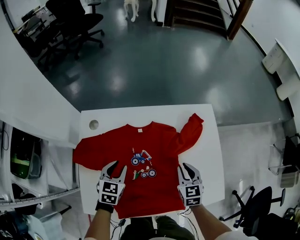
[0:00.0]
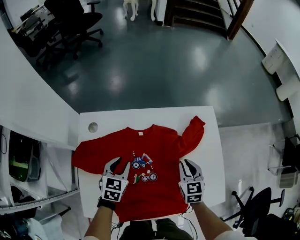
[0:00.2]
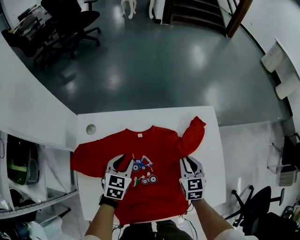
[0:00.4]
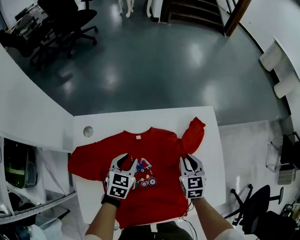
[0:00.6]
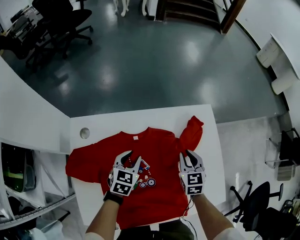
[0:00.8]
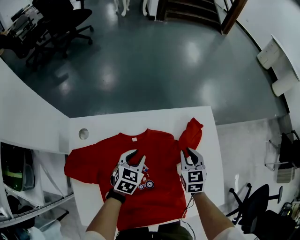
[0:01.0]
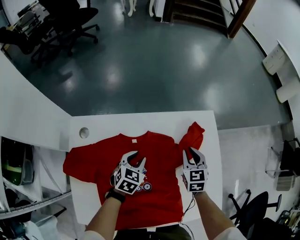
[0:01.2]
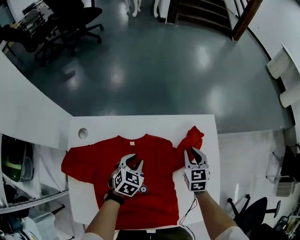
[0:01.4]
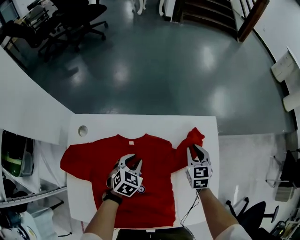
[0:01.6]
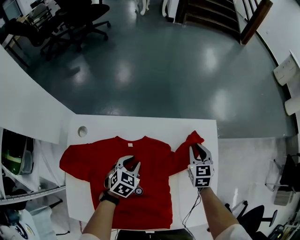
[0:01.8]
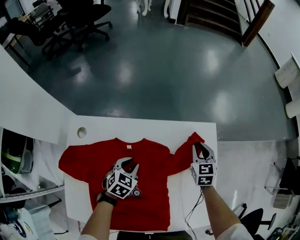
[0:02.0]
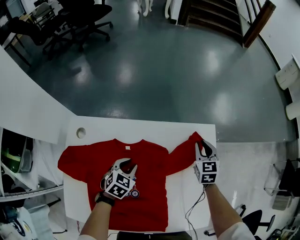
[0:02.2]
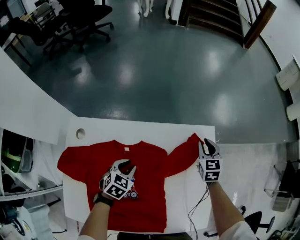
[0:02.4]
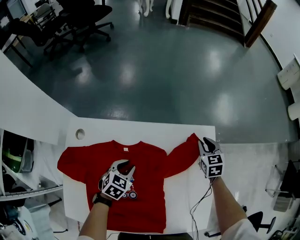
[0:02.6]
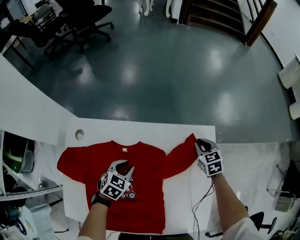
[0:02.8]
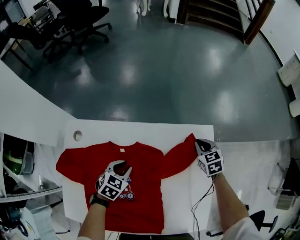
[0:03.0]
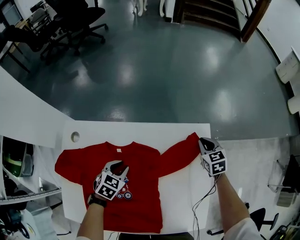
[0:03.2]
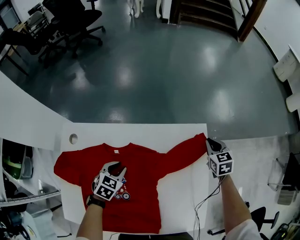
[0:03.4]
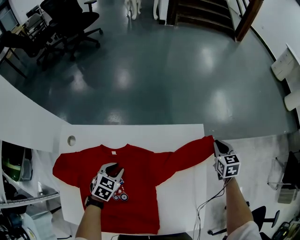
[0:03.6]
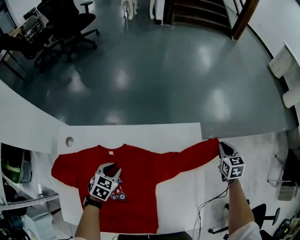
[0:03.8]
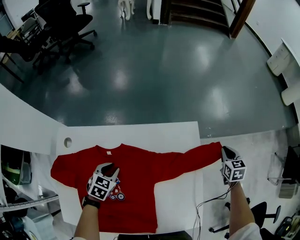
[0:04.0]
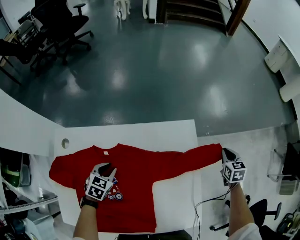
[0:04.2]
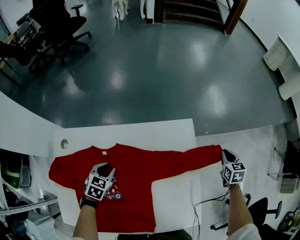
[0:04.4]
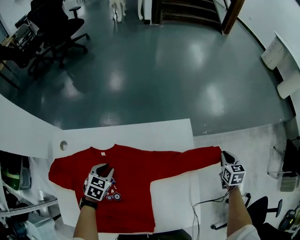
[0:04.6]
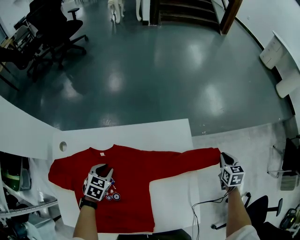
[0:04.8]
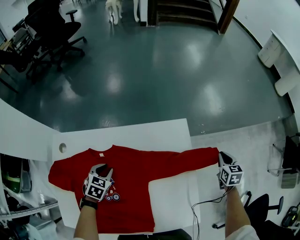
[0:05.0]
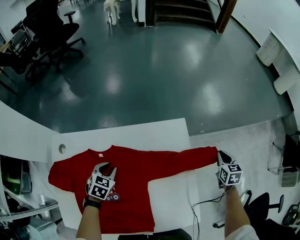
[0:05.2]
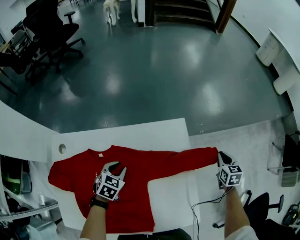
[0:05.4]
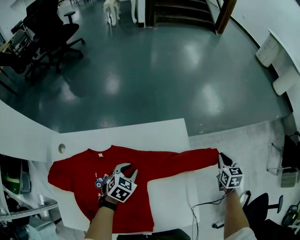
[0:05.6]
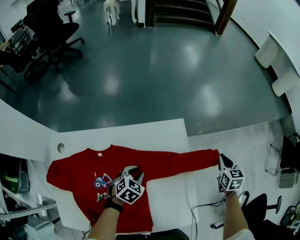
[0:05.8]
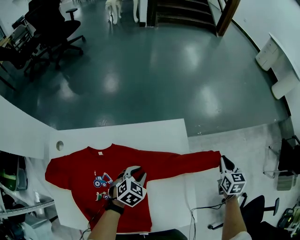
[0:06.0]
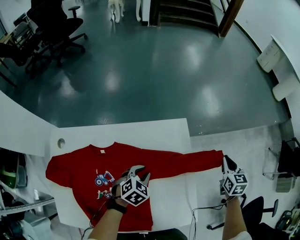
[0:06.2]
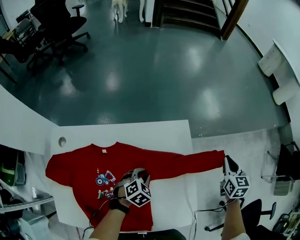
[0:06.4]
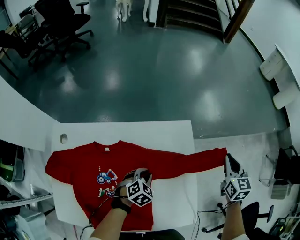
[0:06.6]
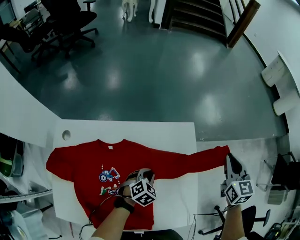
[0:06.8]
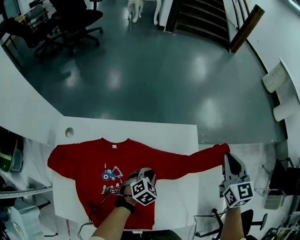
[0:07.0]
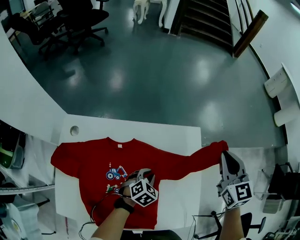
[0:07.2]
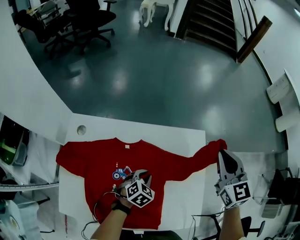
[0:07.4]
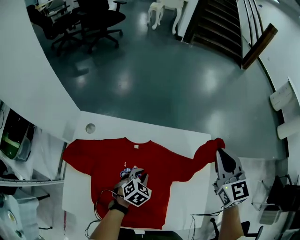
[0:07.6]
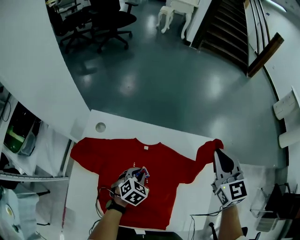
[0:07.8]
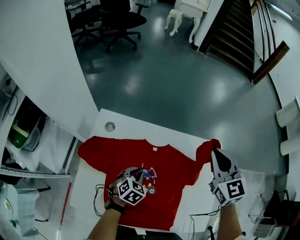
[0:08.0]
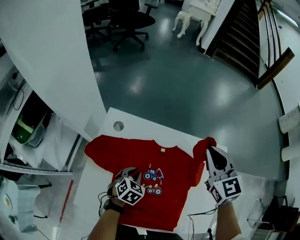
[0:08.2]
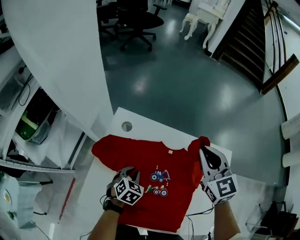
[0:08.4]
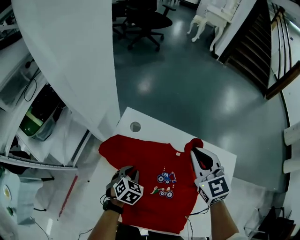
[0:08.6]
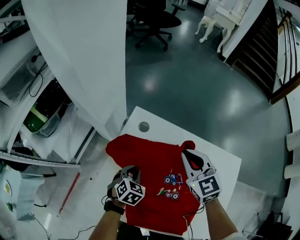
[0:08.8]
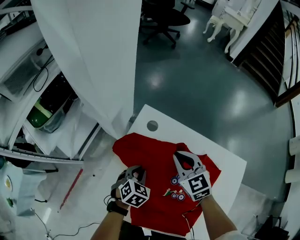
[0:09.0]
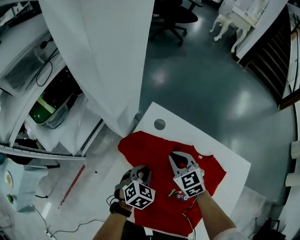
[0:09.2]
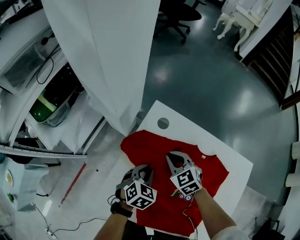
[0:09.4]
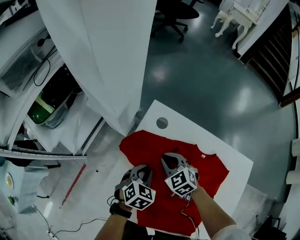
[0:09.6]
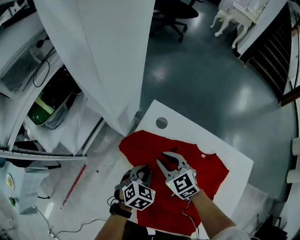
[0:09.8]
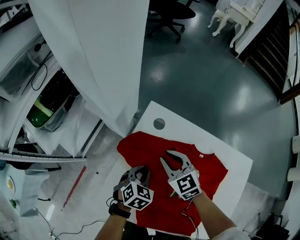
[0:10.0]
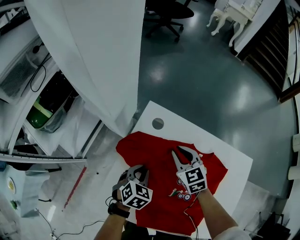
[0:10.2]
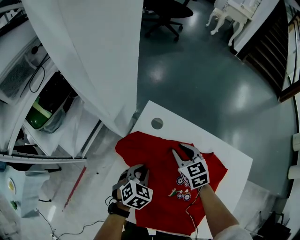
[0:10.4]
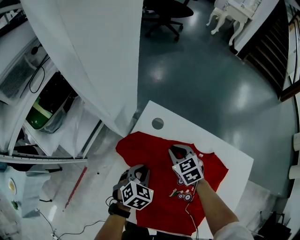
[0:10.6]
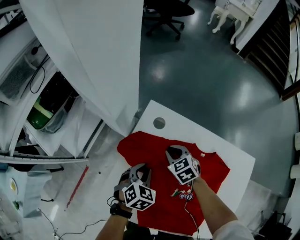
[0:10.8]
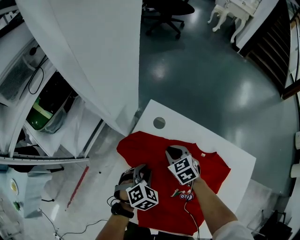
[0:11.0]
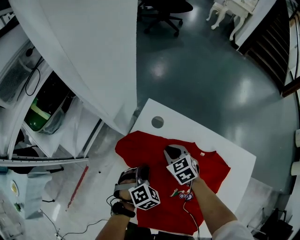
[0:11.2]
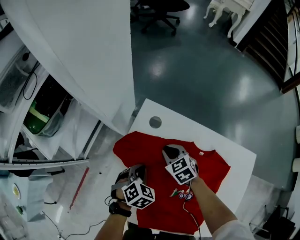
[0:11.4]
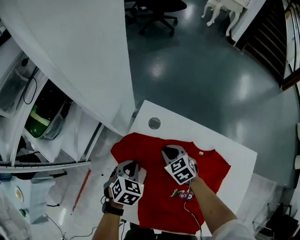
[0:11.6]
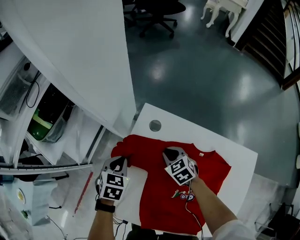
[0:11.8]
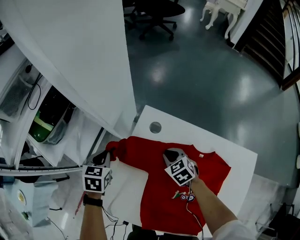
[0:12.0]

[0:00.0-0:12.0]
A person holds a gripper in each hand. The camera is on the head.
0:00.0 to 0:01.6: The right gripper heads forward, covering roughly 20 cm; the left gripper goes approximately 15 cm forward, to the right and downward.
0:01.6 to 0:03.0: The right gripper goes roughly 10 cm forward and to the right.
0:03.0 to 0:04.4: The right gripper moves to the right, about 25 cm, and swivels roughly 30 degrees.
0:04.4 to 0:06.0: The right gripper shifts approximately 5 cm upward, while the left gripper is displaced to the right by roughly 20 cm.
0:06.0 to 0:07.6: The left gripper goes approximately 15 cm to the left and backward, while the right gripper travels to the left and upward by some 40 cm, and rotates some 40 degrees.
0:07.6 to 0:09.0: The left gripper ends up approximately 30 cm from where it was, and swivels about 20 degrees. The right gripper moves roughly 50 cm, and swivels about 40 degrees.
0:09.0 to 0:10.4: The right gripper travels downward by roughly 10 cm.
0:10.4 to 0:12.0: The right gripper heads downward, covering about 5 cm, while the left gripper moves to the left and forward, approximately 20 cm, and turns by approximately 20 degrees.

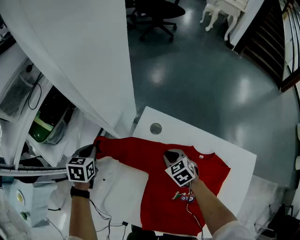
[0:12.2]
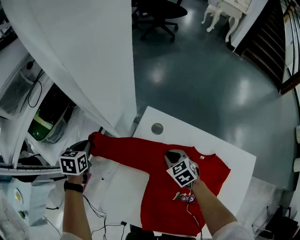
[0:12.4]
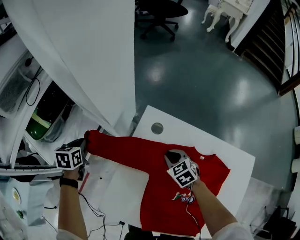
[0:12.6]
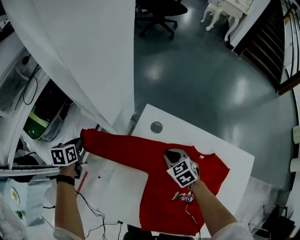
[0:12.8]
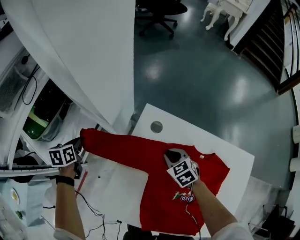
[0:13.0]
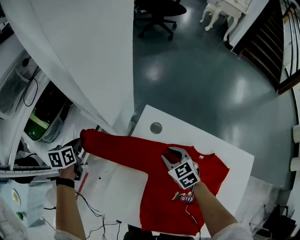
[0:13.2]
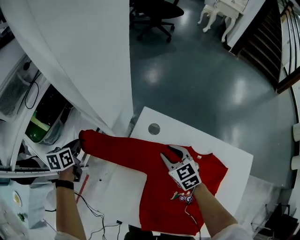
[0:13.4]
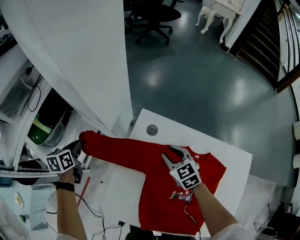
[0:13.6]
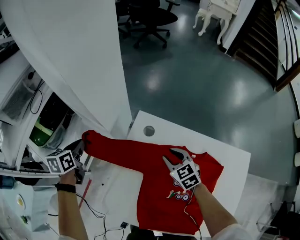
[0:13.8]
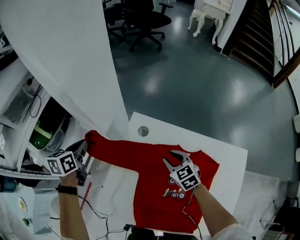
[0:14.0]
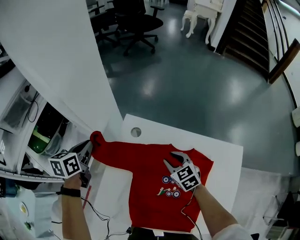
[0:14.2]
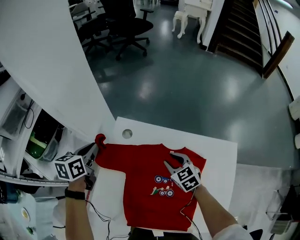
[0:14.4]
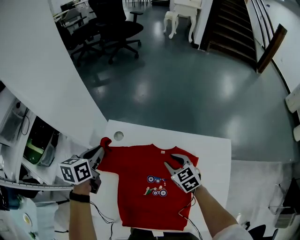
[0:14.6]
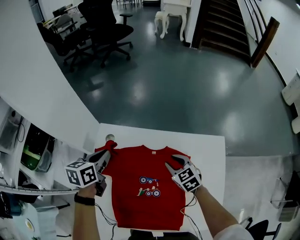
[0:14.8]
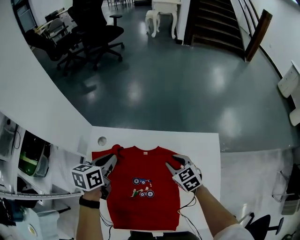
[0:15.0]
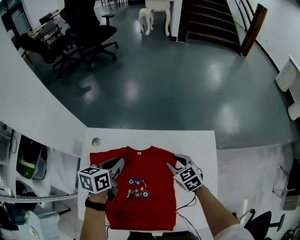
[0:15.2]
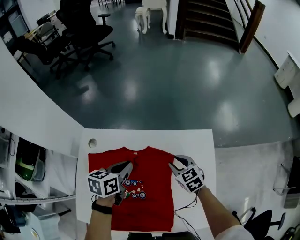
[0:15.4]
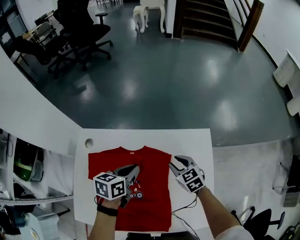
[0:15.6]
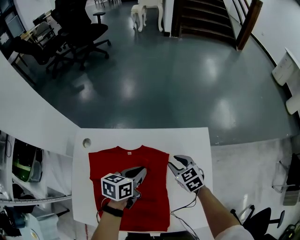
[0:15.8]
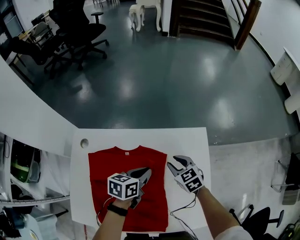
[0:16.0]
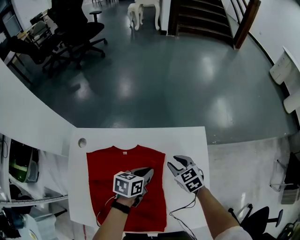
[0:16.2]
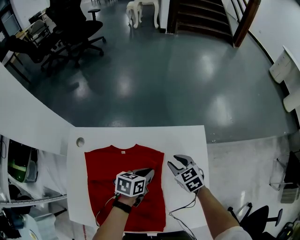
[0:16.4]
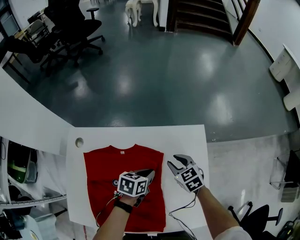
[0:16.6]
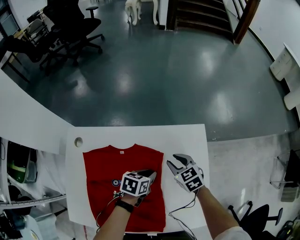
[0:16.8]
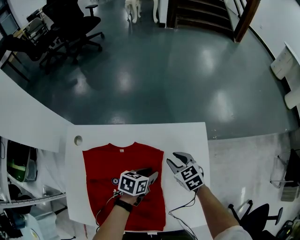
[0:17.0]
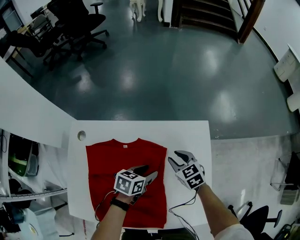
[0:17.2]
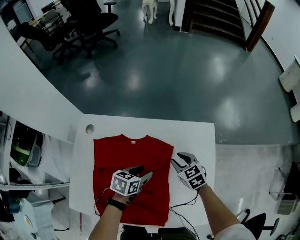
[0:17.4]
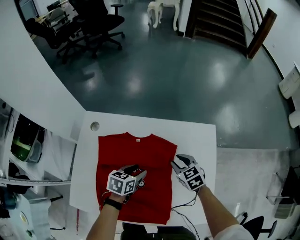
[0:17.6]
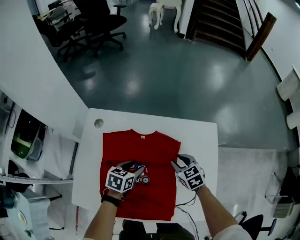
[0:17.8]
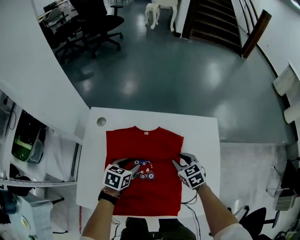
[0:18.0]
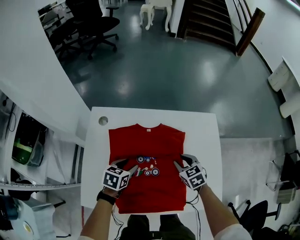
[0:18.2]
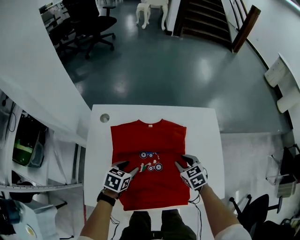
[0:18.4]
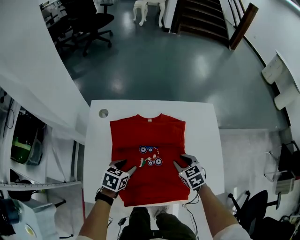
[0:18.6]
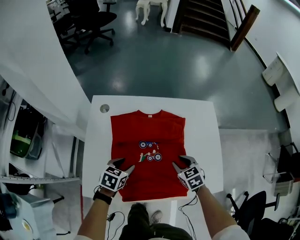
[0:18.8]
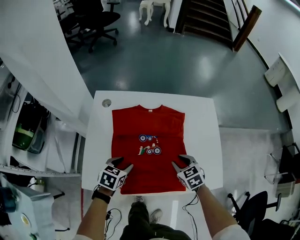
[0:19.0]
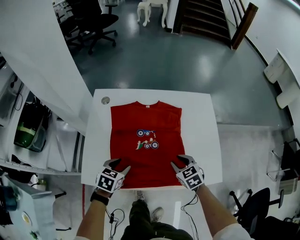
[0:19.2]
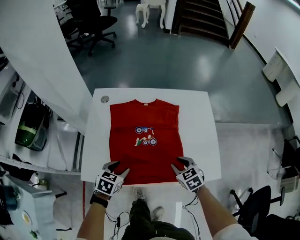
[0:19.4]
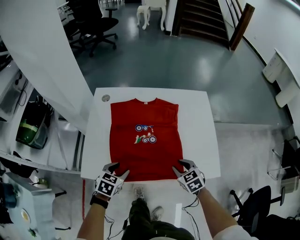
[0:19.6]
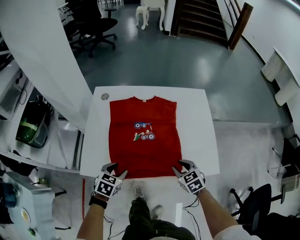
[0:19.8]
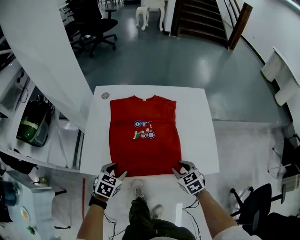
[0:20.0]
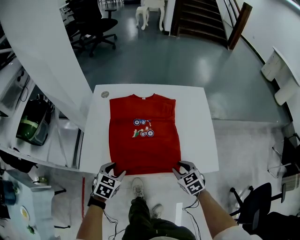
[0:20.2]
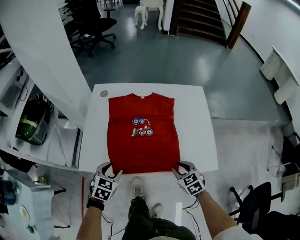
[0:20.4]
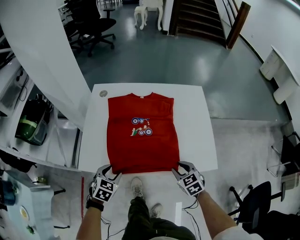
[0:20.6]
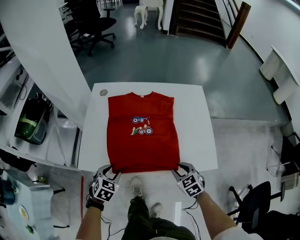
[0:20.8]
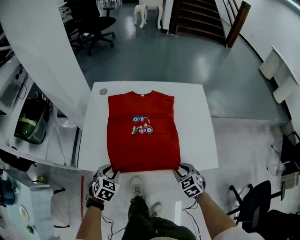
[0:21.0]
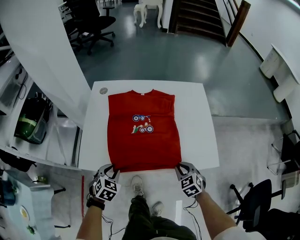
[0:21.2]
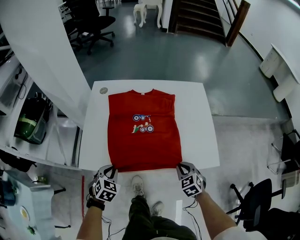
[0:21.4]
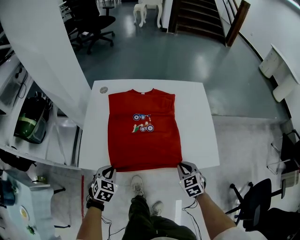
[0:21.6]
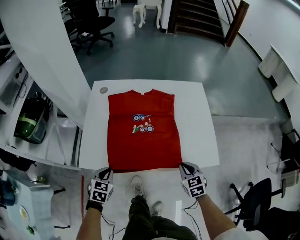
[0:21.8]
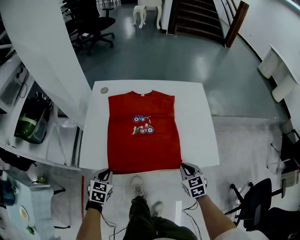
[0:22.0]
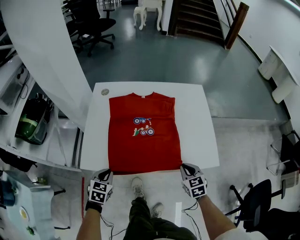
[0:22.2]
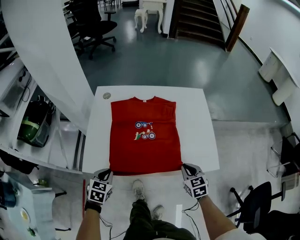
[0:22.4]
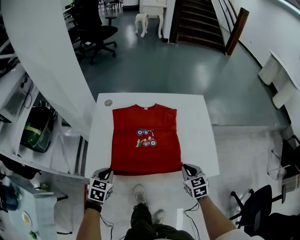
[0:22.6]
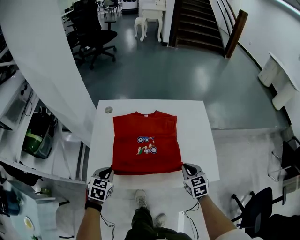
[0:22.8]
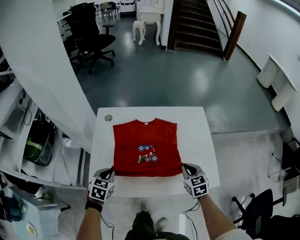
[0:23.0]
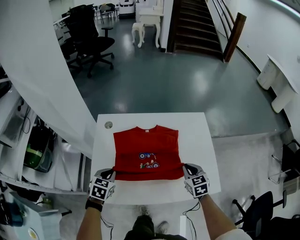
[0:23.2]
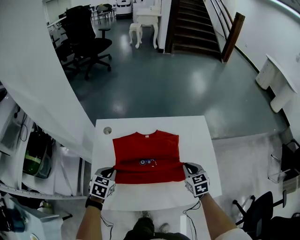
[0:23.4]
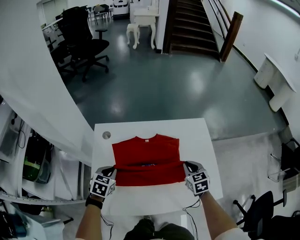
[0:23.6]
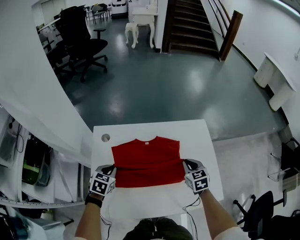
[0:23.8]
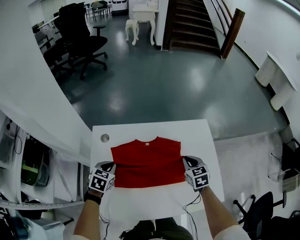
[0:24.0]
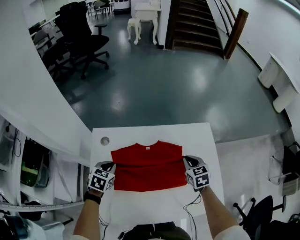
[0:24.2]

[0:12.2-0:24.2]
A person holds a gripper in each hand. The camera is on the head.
0:12.2 to 0:13.8: The two grippers go approximately 5 cm upward.
0:13.8 to 0:15.2: The left gripper moves about 50 cm, and turns by about 30 degrees. Meanwhile the right gripper moves some 30 cm.
0:15.2 to 0:16.6: The right gripper goes some 10 cm to the right, while the left gripper is displaced to the right and downward by roughly 25 cm, and swivels about 20 degrees.
0:16.6 to 0:18.2: The left gripper goes some 25 cm to the left and backward, and opens its fingers. Meanwhile the right gripper heads backward and to the left, covering some 15 cm.
0:18.2 to 0:19.8: The grippers both shift backward by about 20 cm.
0:19.8 to 0:21.2: The left gripper moves roughly 5 cm. The right gripper changes place by roughly 5 cm.
0:21.2 to 0:22.6: Both grippers travel together upward, approximately 5 cm. The right gripper turns by about 20 degrees.
0:22.6 to 0:24.2: The two grippers go about 30 cm forward.
